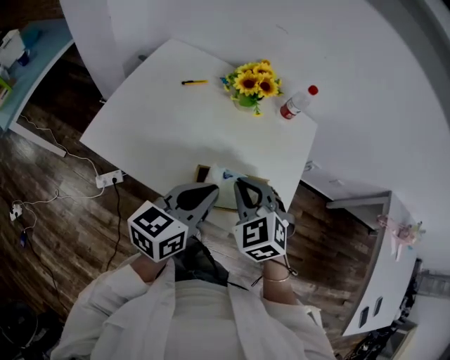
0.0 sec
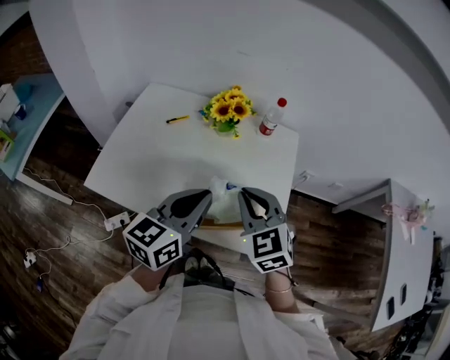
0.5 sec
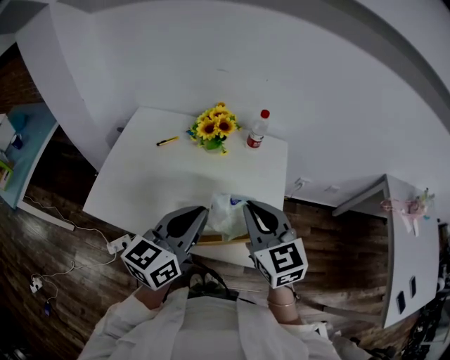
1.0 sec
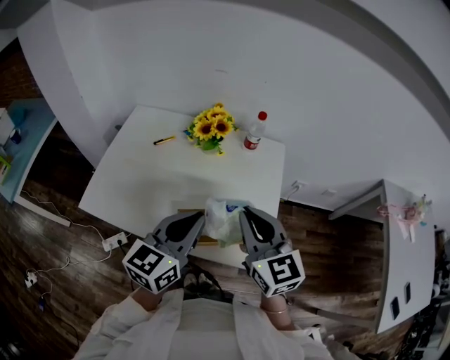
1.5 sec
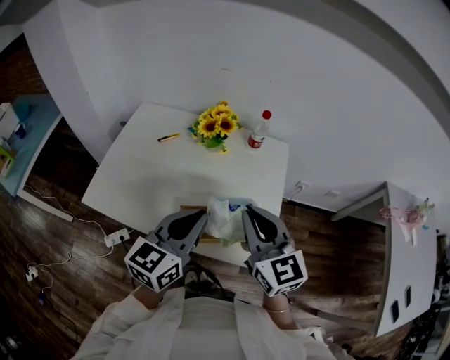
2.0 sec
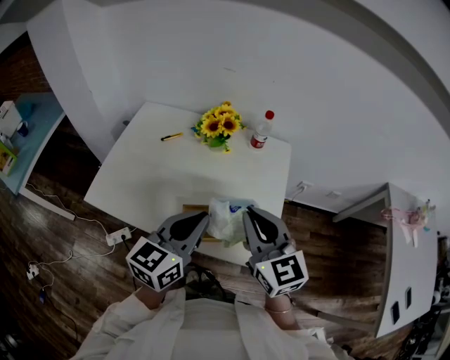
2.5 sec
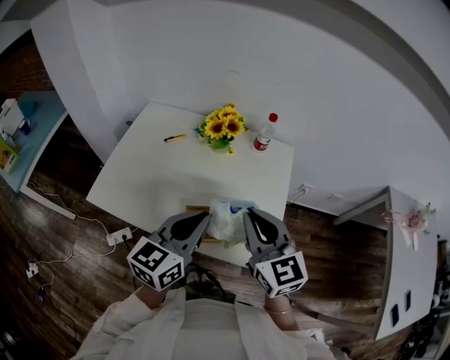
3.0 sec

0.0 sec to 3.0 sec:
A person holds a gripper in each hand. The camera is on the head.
0.0 sec to 1.5 sec: The left gripper moves upward, roughly 5 cm, while the right gripper moves upward and to the right, roughly 15 cm, and tips its fingers upward by roughly 30 degrees.
1.5 sec to 3.0 sec: The two grippers keep their place.

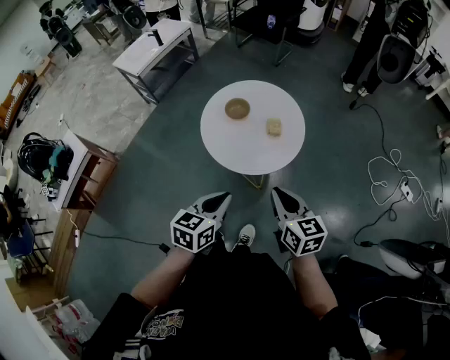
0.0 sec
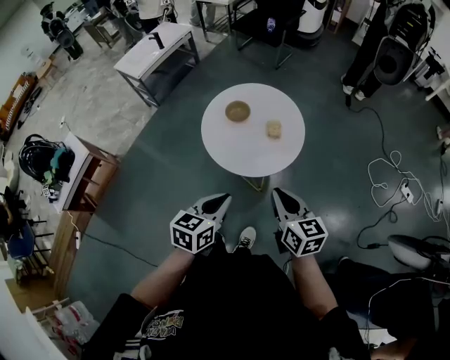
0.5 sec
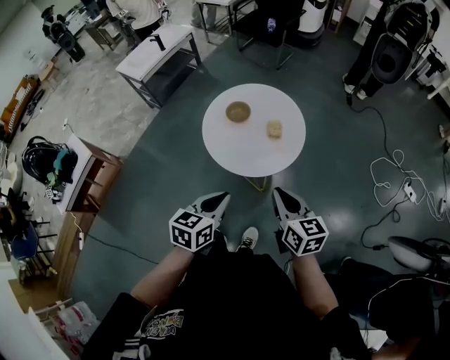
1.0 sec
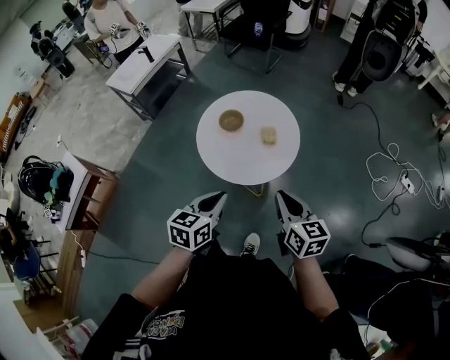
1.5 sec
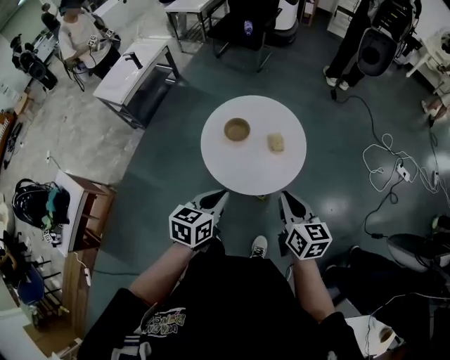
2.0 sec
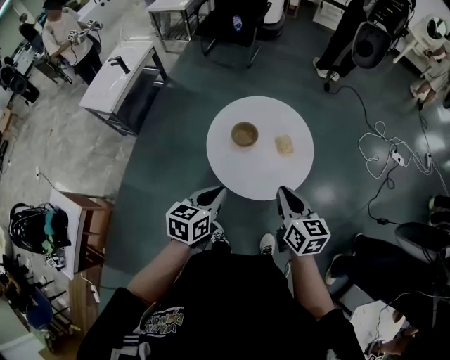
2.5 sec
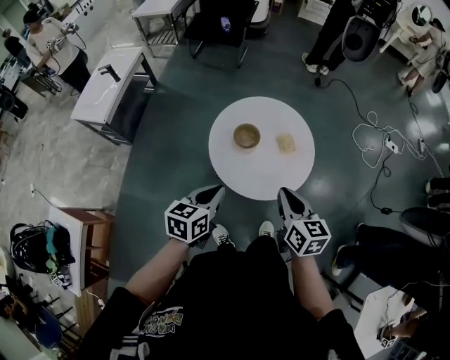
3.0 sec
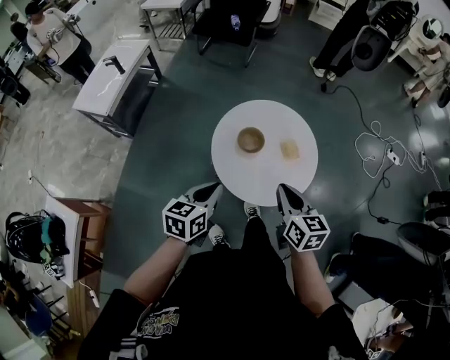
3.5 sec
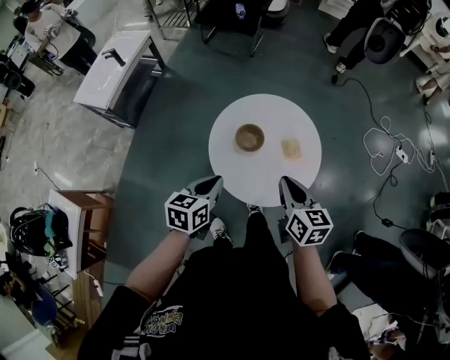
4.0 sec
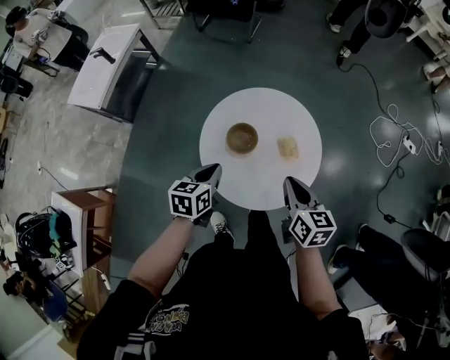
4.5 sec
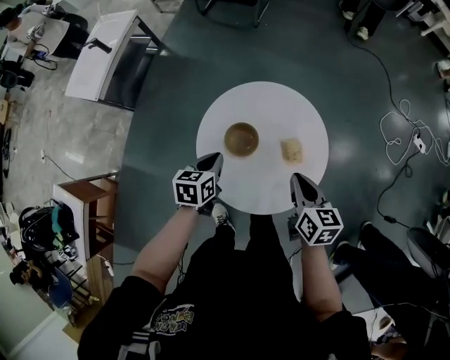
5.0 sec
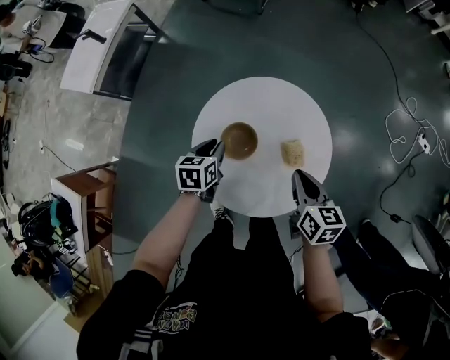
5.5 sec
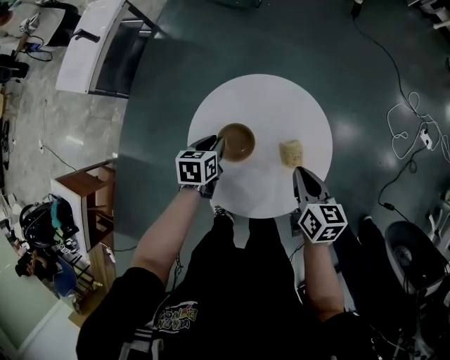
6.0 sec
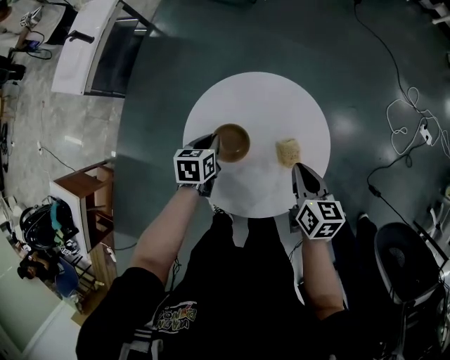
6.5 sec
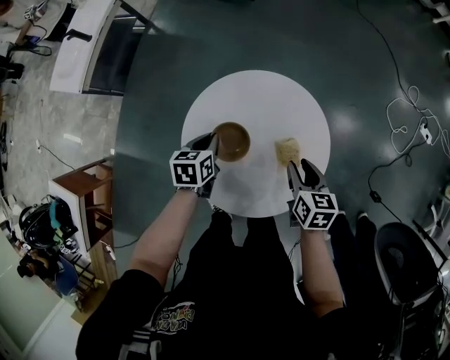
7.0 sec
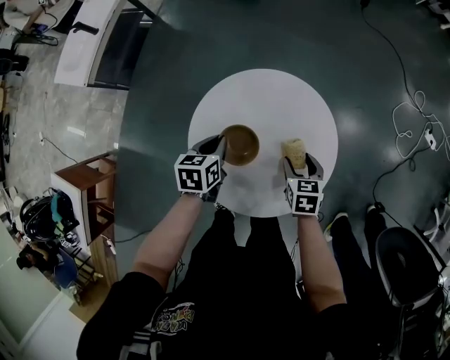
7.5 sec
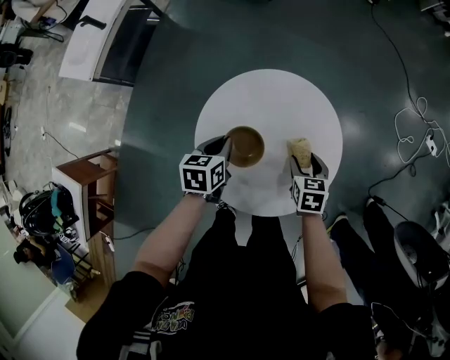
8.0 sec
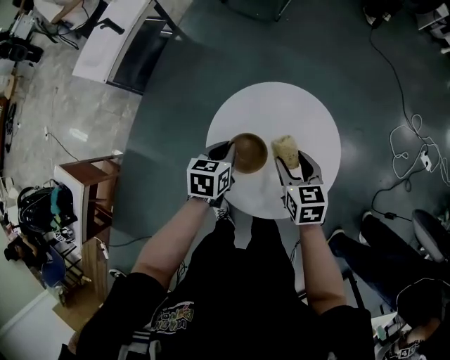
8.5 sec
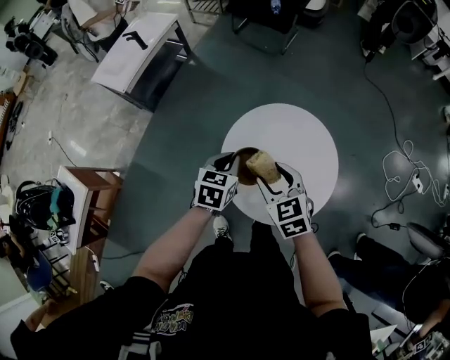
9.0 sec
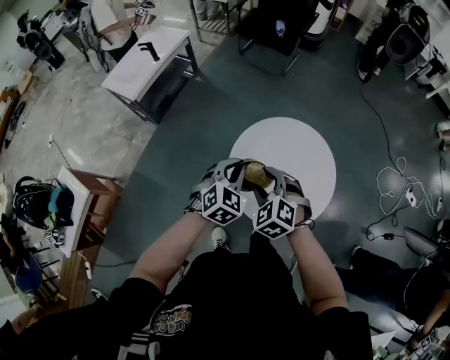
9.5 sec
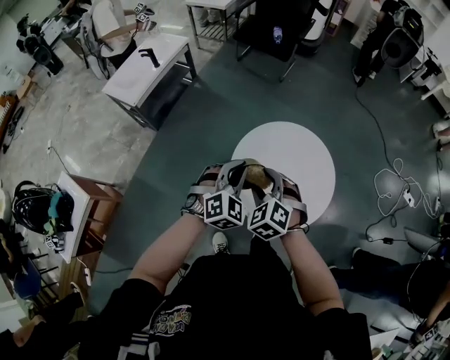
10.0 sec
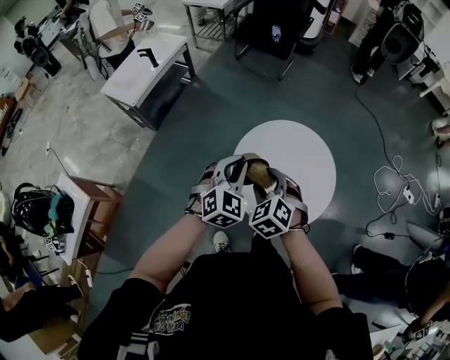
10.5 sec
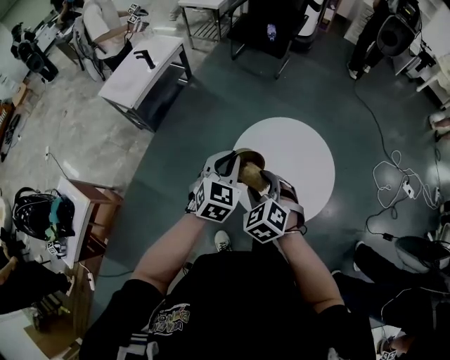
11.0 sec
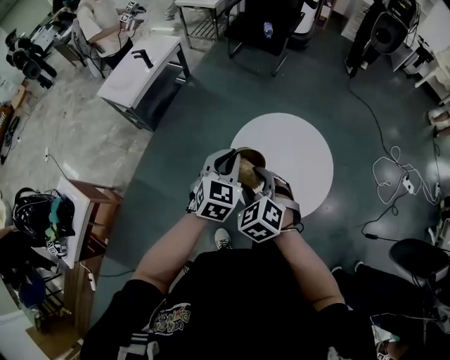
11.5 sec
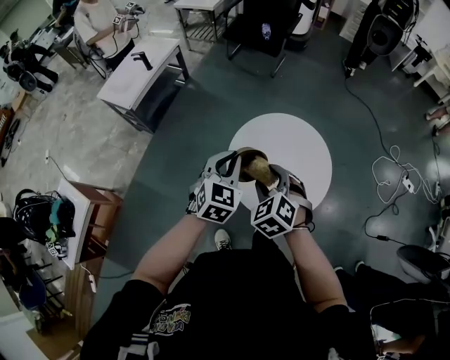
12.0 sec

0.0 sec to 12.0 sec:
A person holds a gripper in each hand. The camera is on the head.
0.0 sec to 2.0 sec: The right gripper is displaced forward by about 5 cm. Meanwhile the left gripper goes roughly 15 cm forward and to the left.
2.0 sec to 4.0 sec: Both grippers travel together to the left and forward, approximately 15 cm.
4.0 sec to 6.0 sec: The left gripper goes some 25 cm downward and forward, and turns by approximately 20 degrees; the right gripper shifts some 20 cm forward, downward and to the right.
6.0 sec to 8.0 sec: The right gripper is displaced downward by approximately 10 cm, swivels roughly 30 degrees, and opens up.
8.0 sec to 10.0 sec: The right gripper shifts approximately 35 cm to the left and upward, and twists approximately 60 degrees counterclockwise, seen from behind, while the left gripper is displaced upward by approximately 20 cm, and rolls clockwise, seen from behind, by some 60 degrees.
10.0 sec to 12.0 sec: The left gripper turns by some 20 degrees.

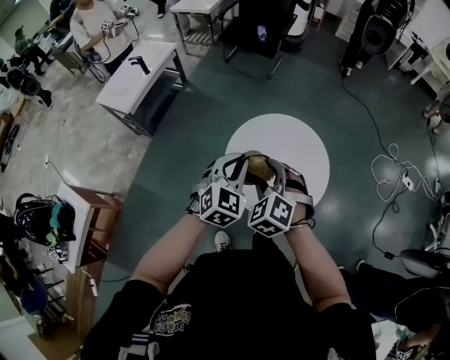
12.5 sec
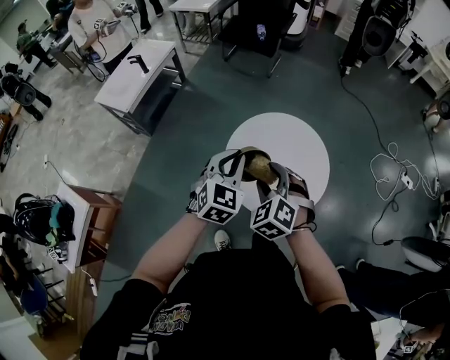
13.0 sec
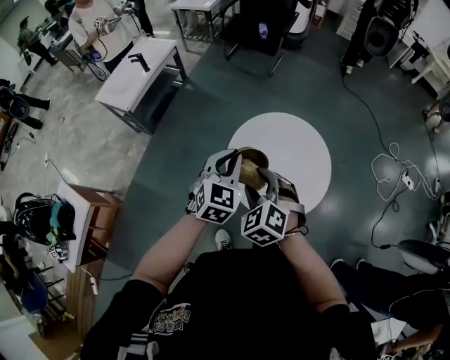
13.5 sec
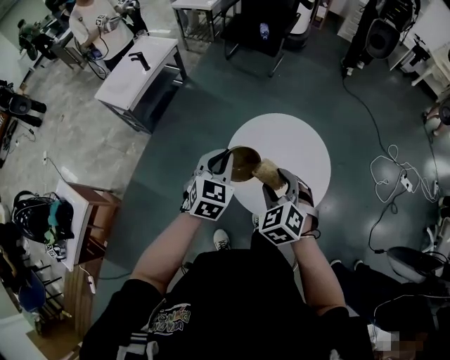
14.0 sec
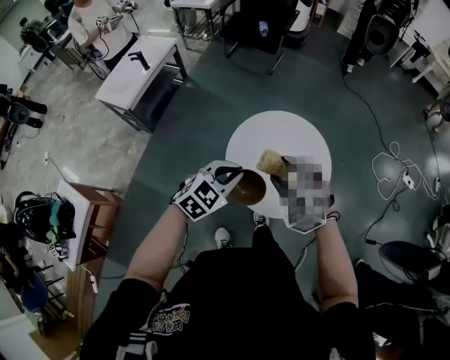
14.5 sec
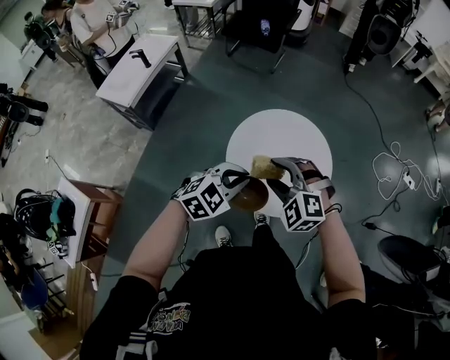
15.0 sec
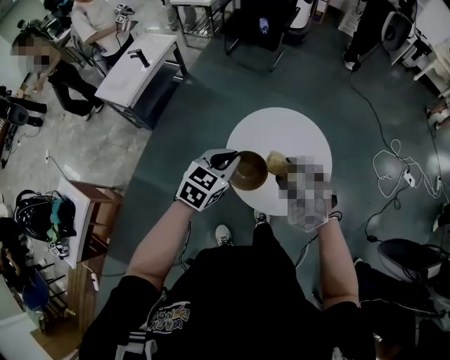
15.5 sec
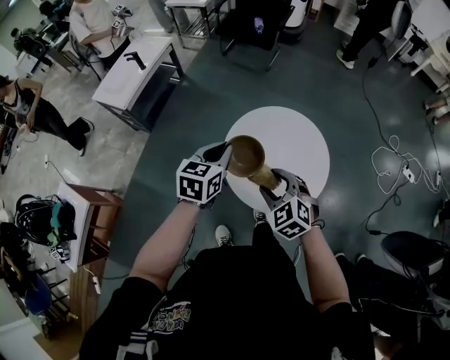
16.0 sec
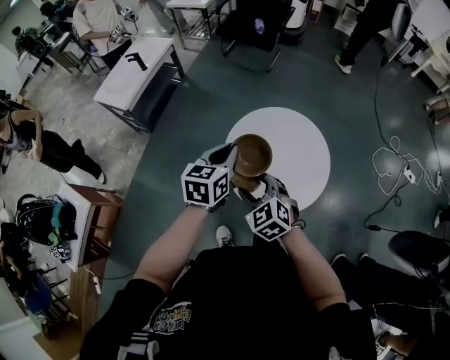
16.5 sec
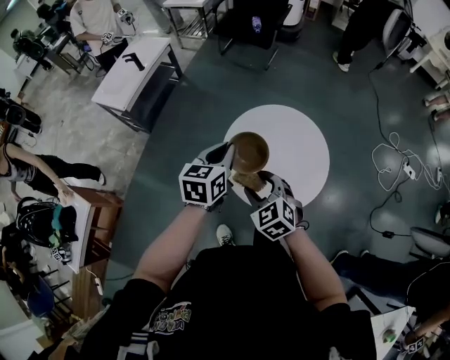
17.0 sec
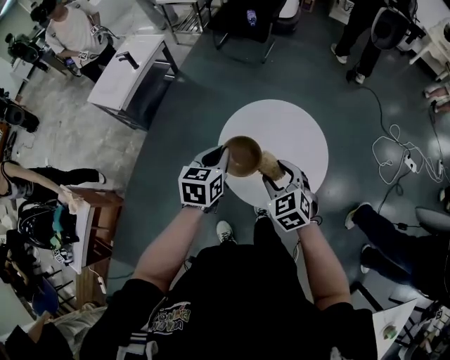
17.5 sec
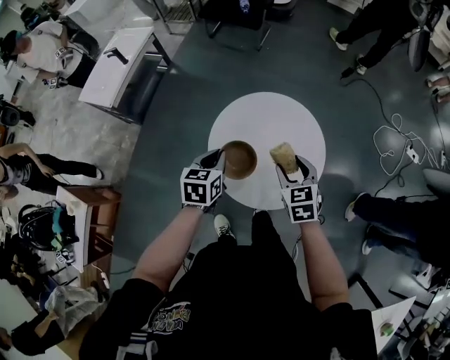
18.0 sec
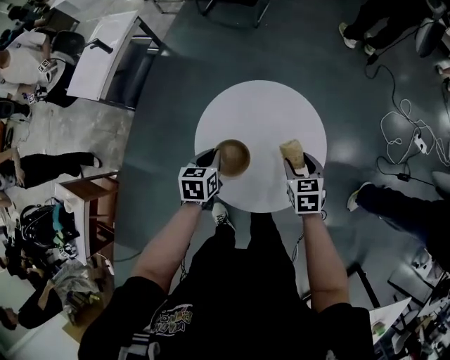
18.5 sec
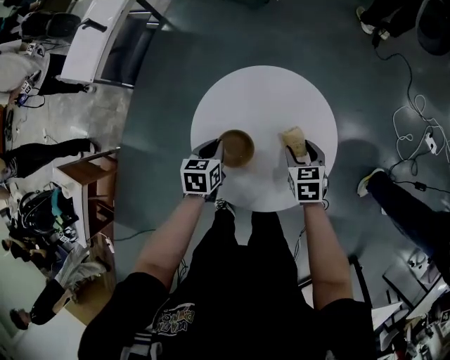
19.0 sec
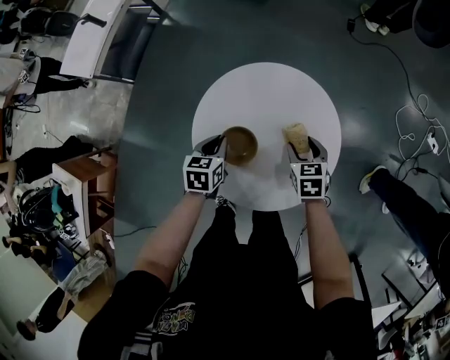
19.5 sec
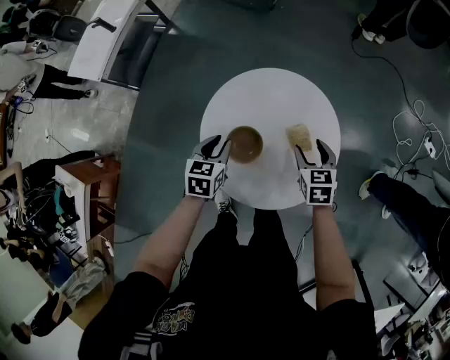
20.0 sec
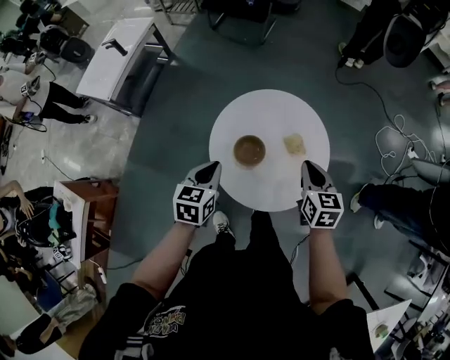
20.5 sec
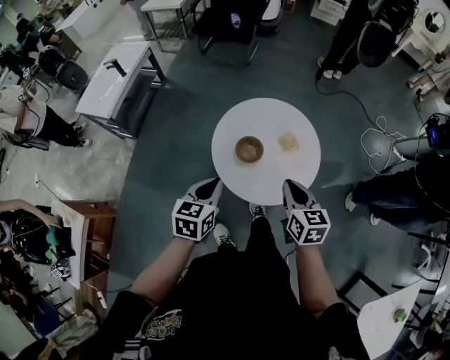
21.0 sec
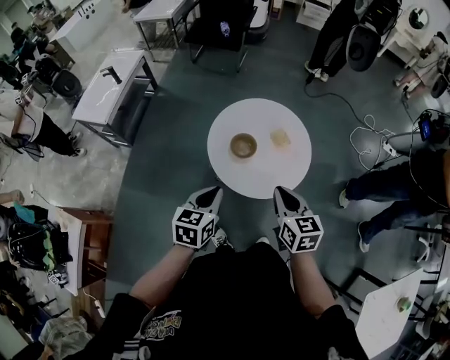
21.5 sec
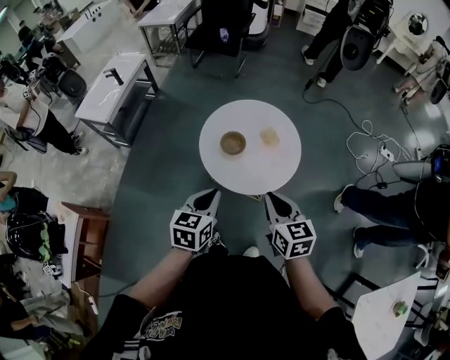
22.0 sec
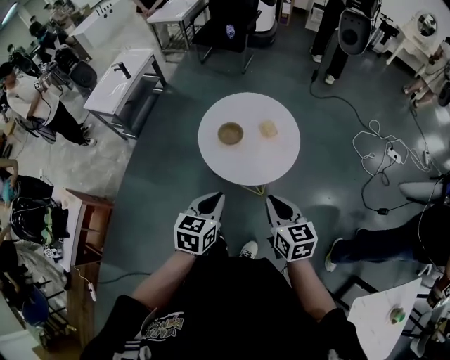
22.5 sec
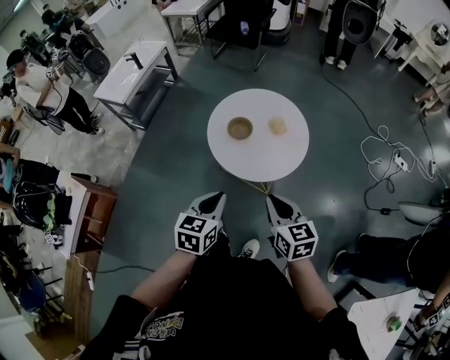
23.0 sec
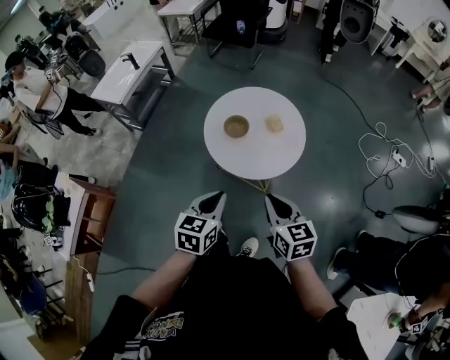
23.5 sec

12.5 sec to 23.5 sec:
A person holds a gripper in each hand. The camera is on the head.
12.5 sec to 14.5 sec: The left gripper turns by some 20 degrees.
14.5 sec to 16.0 sec: The right gripper is displaced downward by approximately 5 cm; the left gripper travels forward by roughly 5 cm, and rotates about 40 degrees.
16.0 sec to 18.0 sec: The left gripper shifts some 10 cm downward, while the right gripper shifts roughly 15 cm to the right and forward, and changes its angle by approximately 30 degrees.
18.0 sec to 20.0 sec: The right gripper heads downward, forward and to the right, covering about 15 cm, while the left gripper shifts roughly 10 cm downward, and opens up.
20.0 sec to 21.5 sec: The two grippers go about 30 cm backward and upward. The right gripper turns by about 20 degrees, and closes its fingers, while the left gripper closes up.
21.5 sec to 23.5 sec: Both grippers move backward and to the right, roughly 15 cm.
